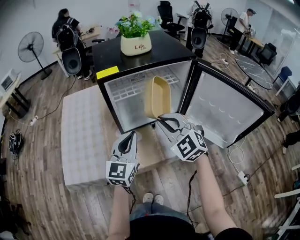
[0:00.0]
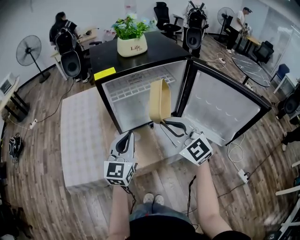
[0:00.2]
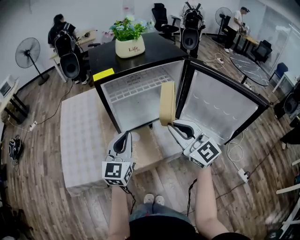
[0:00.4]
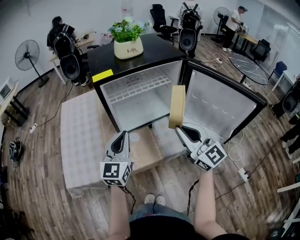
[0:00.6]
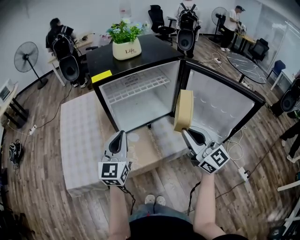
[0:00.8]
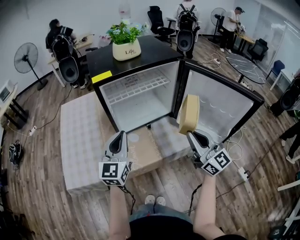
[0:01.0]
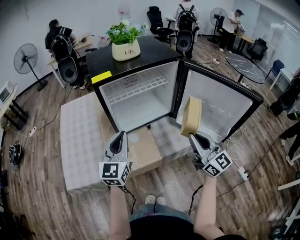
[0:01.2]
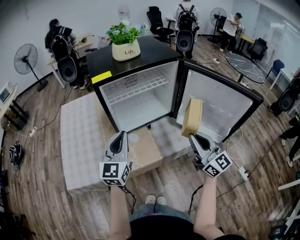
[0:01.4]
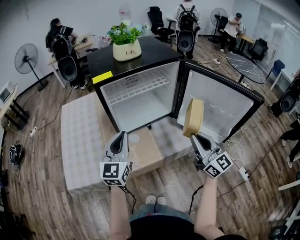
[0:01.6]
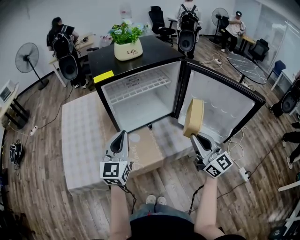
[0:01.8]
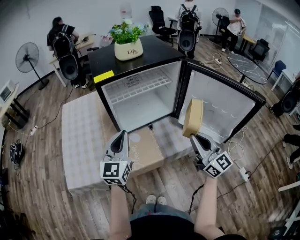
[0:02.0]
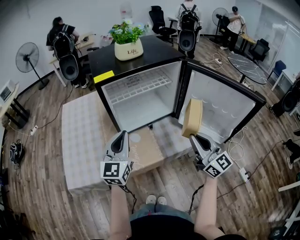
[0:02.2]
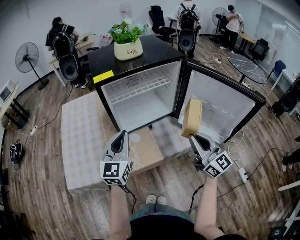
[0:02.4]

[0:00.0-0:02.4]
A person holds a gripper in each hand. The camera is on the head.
0:00.0 to 0:01.2: The right gripper heads to the right and backward, covering roughly 20 cm, and tips its fingers upward by some 30 degrees.
0:01.2 to 0:02.4: Both grippers stay put.

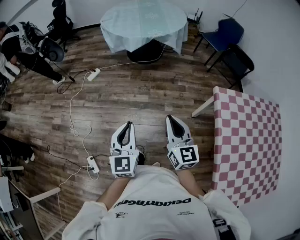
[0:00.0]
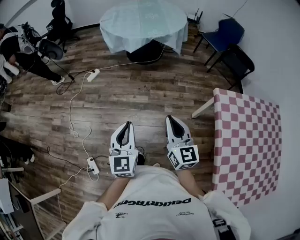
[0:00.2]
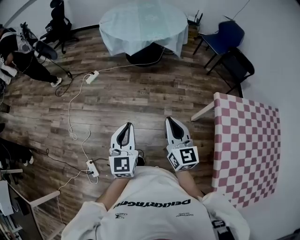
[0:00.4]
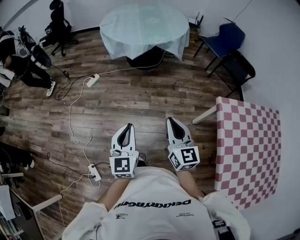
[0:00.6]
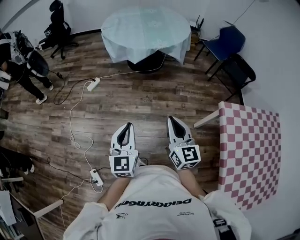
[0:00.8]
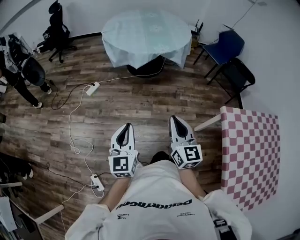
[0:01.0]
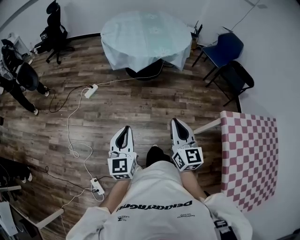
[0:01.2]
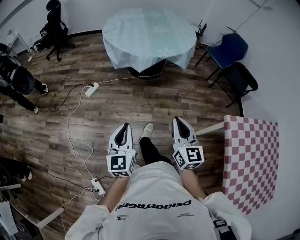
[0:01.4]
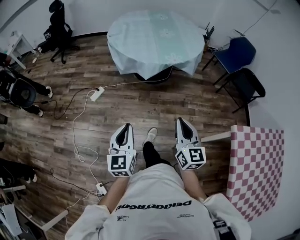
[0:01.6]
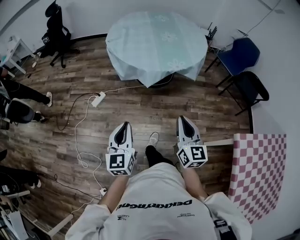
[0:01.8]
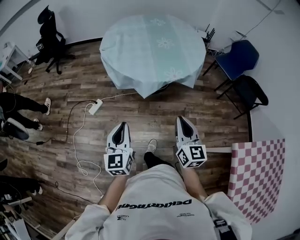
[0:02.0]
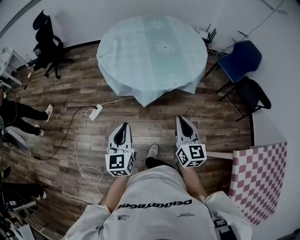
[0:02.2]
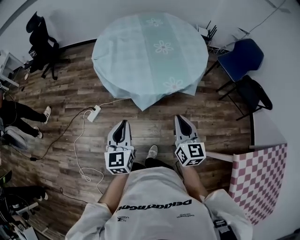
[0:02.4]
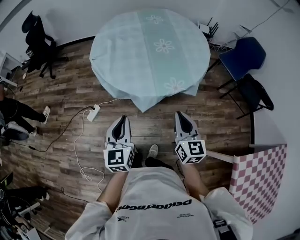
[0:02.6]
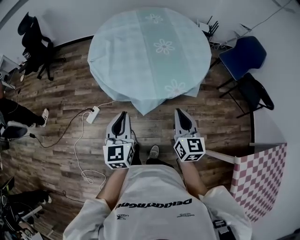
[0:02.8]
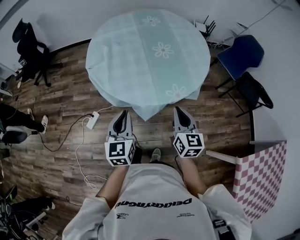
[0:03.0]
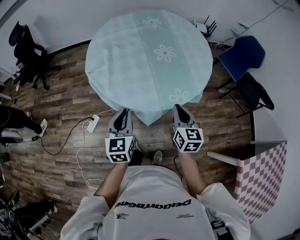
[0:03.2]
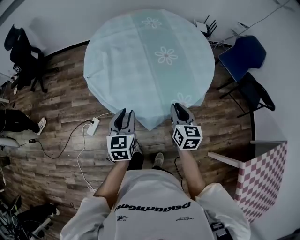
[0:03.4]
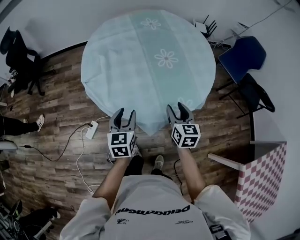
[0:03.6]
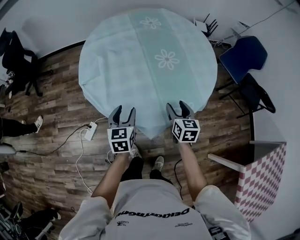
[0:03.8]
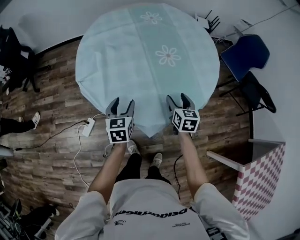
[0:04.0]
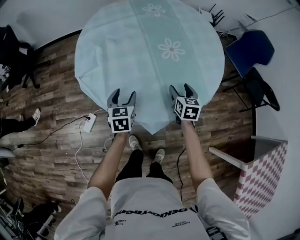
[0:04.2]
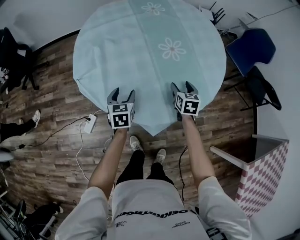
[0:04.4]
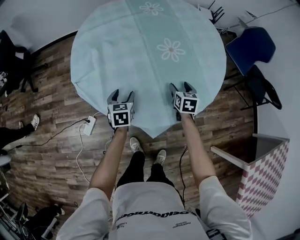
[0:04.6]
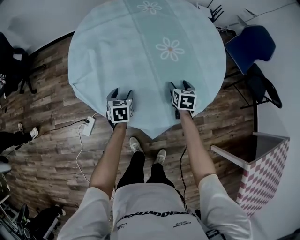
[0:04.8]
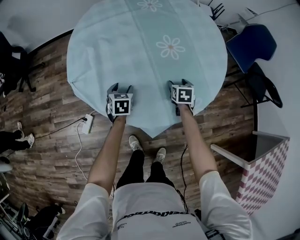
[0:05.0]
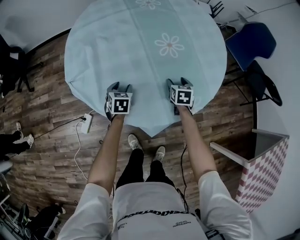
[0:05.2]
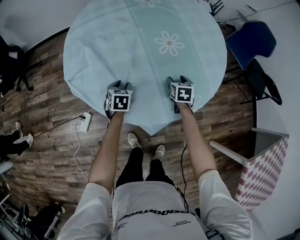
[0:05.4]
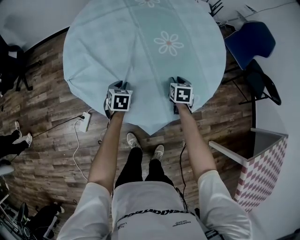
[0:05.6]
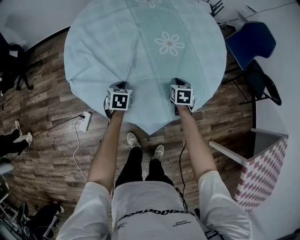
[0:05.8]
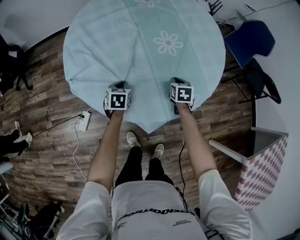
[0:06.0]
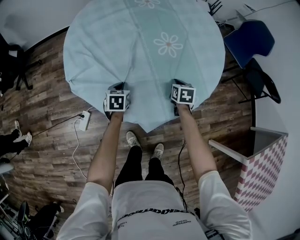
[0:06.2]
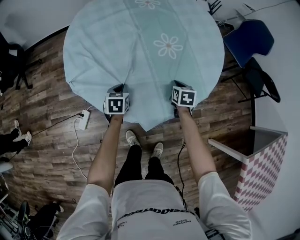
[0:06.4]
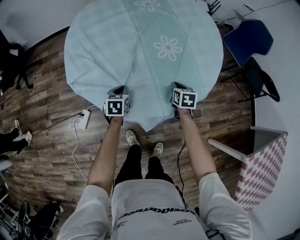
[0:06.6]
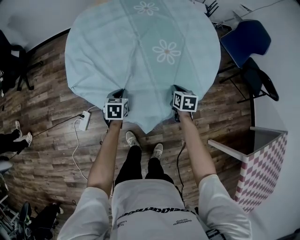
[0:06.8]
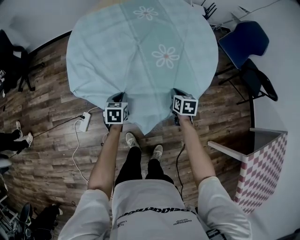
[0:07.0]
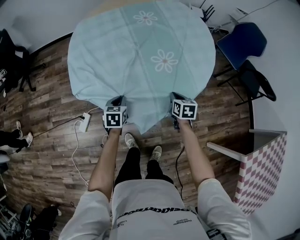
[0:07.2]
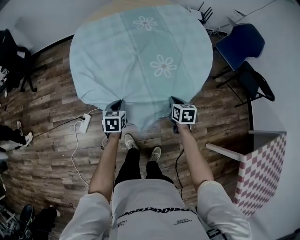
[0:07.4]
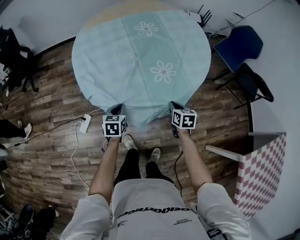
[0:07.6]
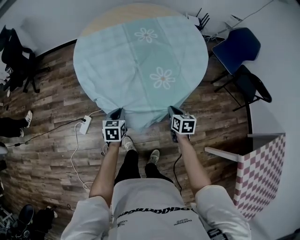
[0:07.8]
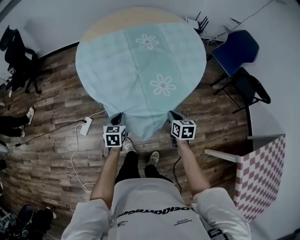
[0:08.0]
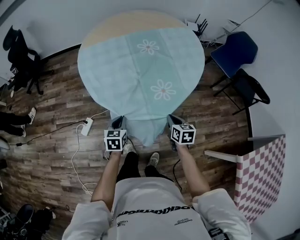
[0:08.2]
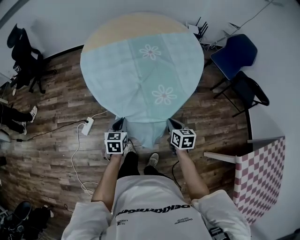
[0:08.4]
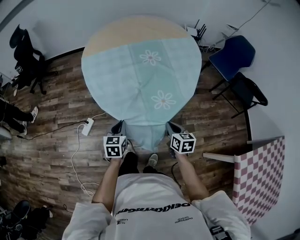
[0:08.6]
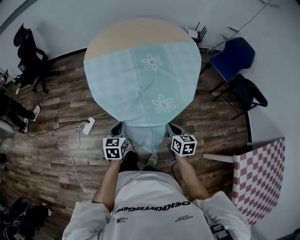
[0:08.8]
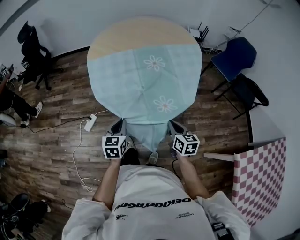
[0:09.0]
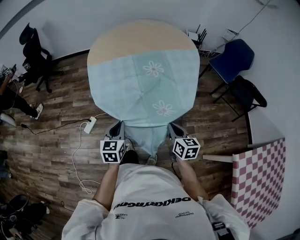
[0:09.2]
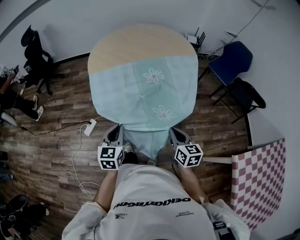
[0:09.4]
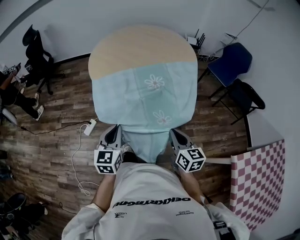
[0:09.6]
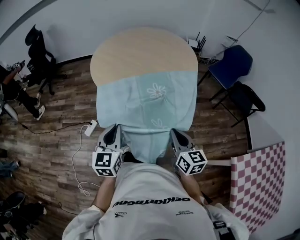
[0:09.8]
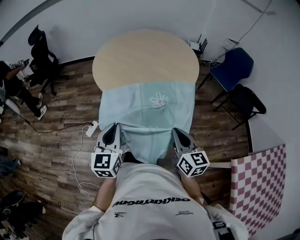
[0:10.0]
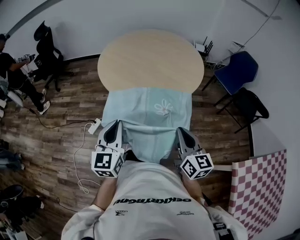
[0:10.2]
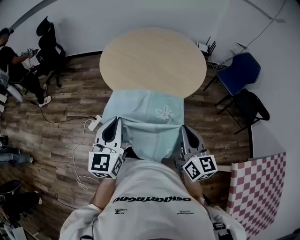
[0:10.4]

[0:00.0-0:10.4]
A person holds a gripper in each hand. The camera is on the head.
0:00.0 to 0:01.4: Both grippers move forward and to the left, roughly 25 cm.
0:01.4 to 0:03.0: Both grippers are carried forward, about 50 cm.
0:03.0 to 0:04.4: Both grippers travel together forward and downward, approximately 35 cm. The left gripper changes its angle by roughly 20 degrees, and opens up; the right gripper turns by roughly 30 degrees, and opens its fingers.
0:04.4 to 0:06.0: Both grippers travel together downward, roughly 10 cm. The right gripper closes its fingers; the left gripper closes its fingers.
0:06.0 to 0:07.4: The right gripper travels backward by roughly 15 cm; the left gripper travels backward and upward by some 15 cm.
0:07.4 to 0:09.0: Both grippers move backward and upward, about 25 cm.
0:09.0 to 0:10.4: The left gripper moves upward and backward, about 25 cm, and turns by some 30 degrees, while the right gripper heads upward, covering about 20 cm, and rotates approximately 30 degrees.

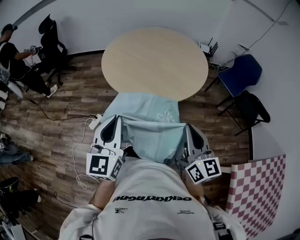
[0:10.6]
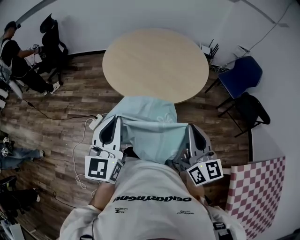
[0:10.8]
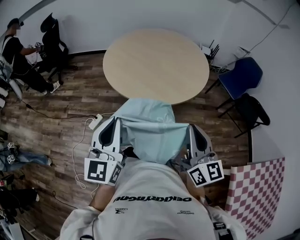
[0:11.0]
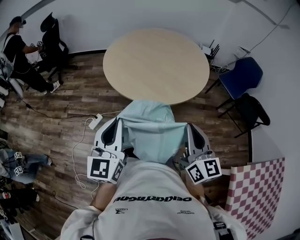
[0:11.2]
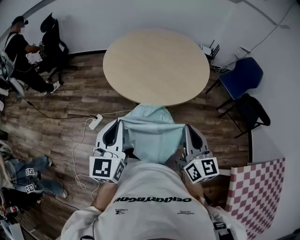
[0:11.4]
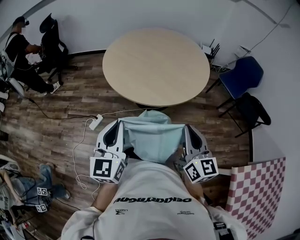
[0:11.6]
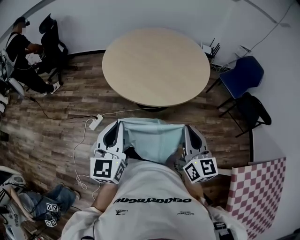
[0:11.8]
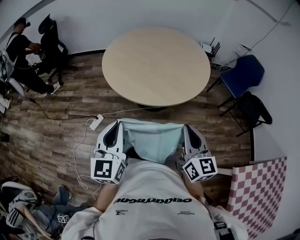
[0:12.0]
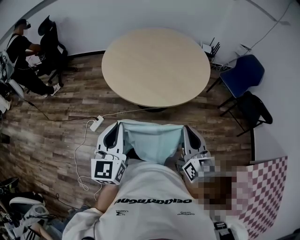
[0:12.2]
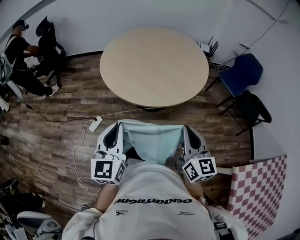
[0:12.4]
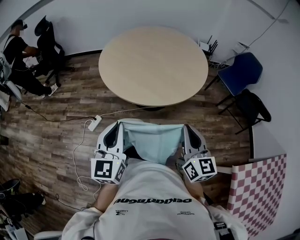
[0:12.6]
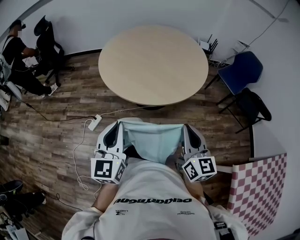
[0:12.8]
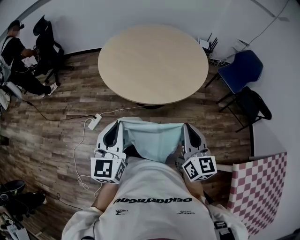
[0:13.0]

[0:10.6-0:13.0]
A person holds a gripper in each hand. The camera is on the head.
0:10.6 to 0:13.0: The grippers make only small movements.

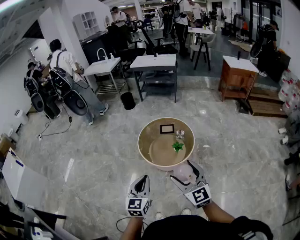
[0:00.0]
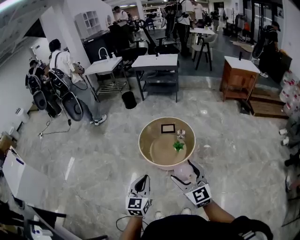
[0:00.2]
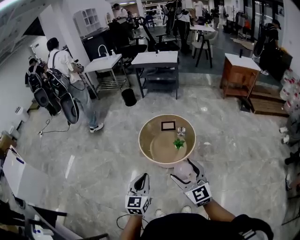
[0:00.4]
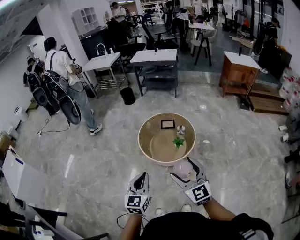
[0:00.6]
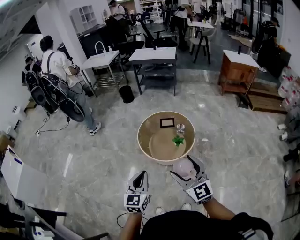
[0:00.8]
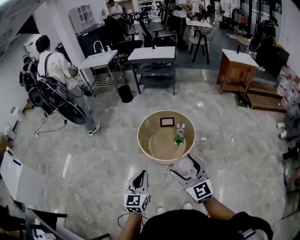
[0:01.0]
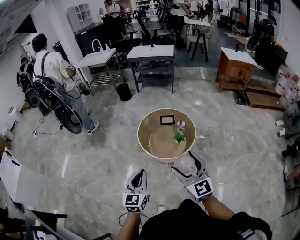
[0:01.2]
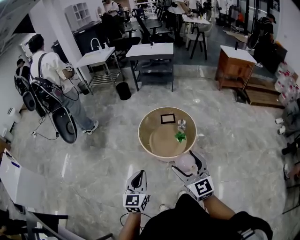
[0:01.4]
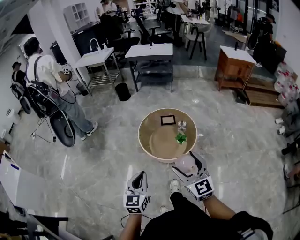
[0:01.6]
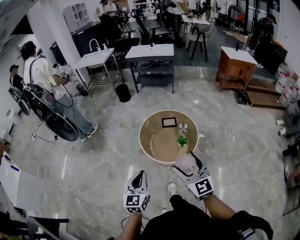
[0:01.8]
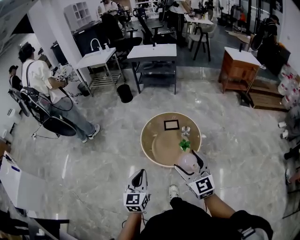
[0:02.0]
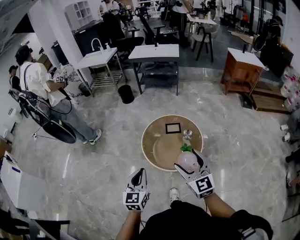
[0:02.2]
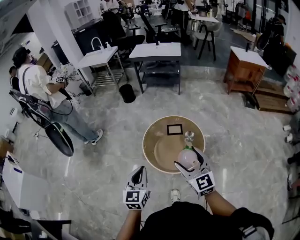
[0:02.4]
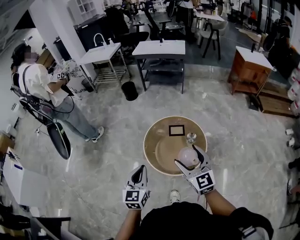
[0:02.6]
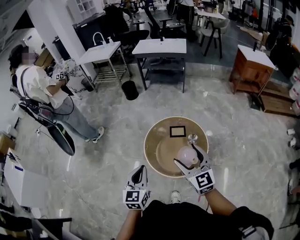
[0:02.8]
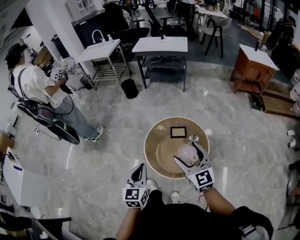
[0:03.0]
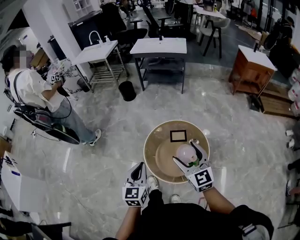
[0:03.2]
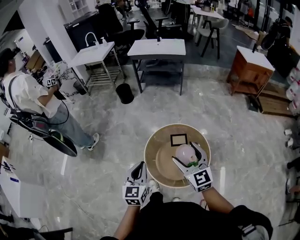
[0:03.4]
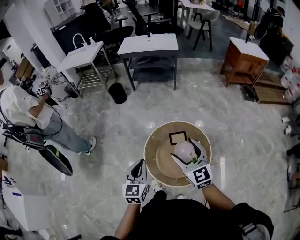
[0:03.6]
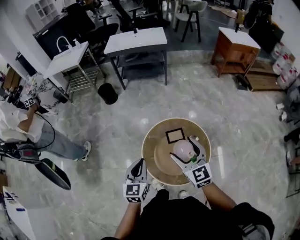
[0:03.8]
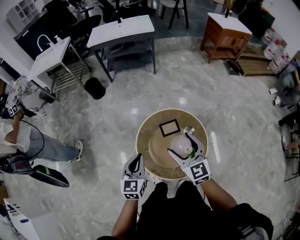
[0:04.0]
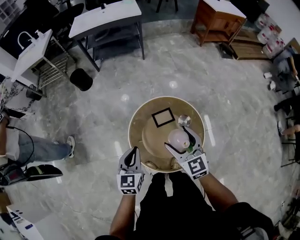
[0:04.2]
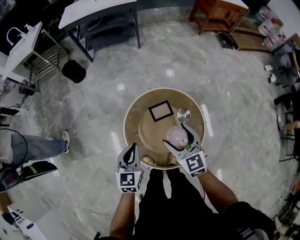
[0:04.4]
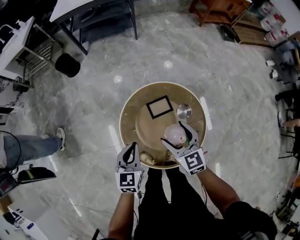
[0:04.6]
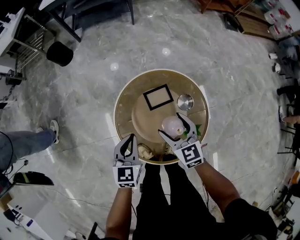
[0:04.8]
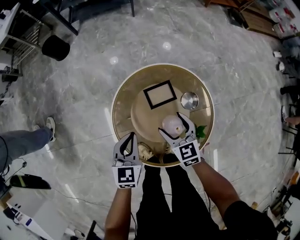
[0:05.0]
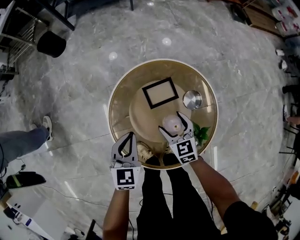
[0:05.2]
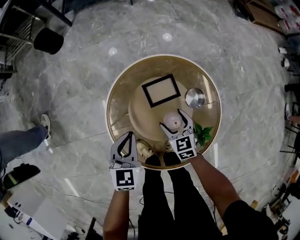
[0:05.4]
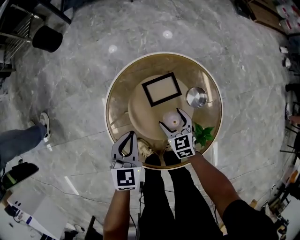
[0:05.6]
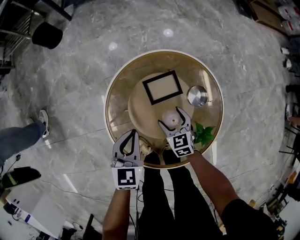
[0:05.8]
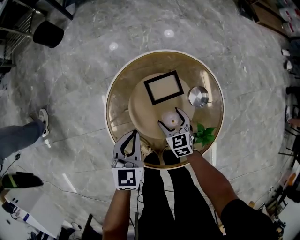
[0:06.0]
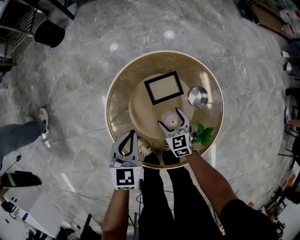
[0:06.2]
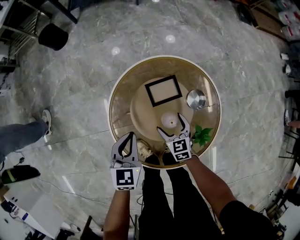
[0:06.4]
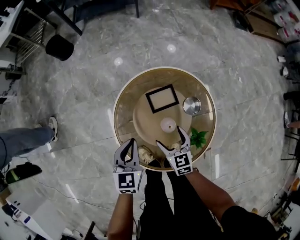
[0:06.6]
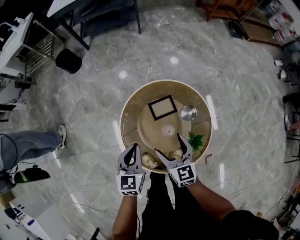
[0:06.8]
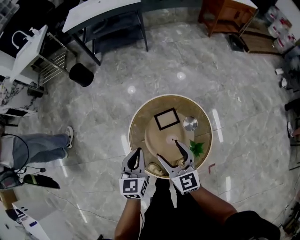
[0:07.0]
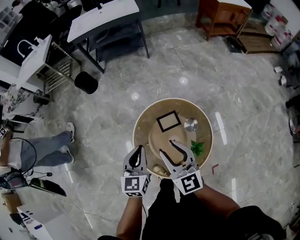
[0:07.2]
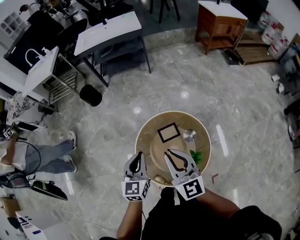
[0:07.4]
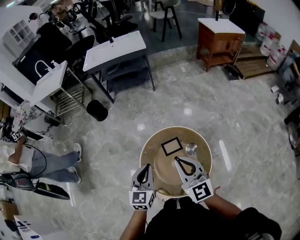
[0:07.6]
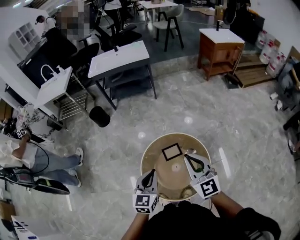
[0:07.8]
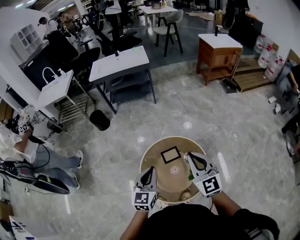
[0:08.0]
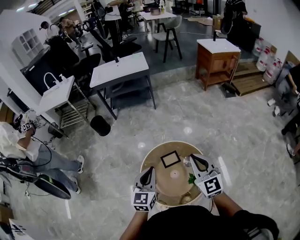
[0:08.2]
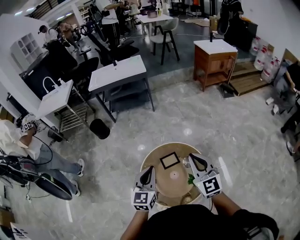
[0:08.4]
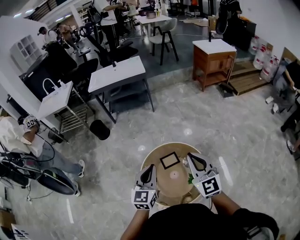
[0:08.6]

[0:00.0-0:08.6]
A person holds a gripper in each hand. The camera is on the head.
0:00.0 to 0:01.4: Both grippers move to the left, approximately 5 cm.
0:01.4 to 0:02.8: Both grippers move forward, roughly 25 cm.
0:02.8 to 0:04.4: Both grippers travel together forward and downward, some 35 cm. The right gripper rotates roughly 30 degrees, while the left gripper changes its angle by about 30 degrees.
0:04.4 to 0:05.8: The right gripper shifts some 40 cm downward, and turns by approximately 20 degrees. Meanwhile the left gripper travels downward by roughly 20 cm.
0:05.8 to 0:07.2: The left gripper is displaced upward by about 25 cm. Meanwhile the right gripper goes about 50 cm upward, points its fingers some 40 degrees further upward, and closes.
0:07.2 to 0:08.6: The right gripper is displaced upward and to the right by approximately 20 cm, and closes up; the left gripper heads upward, covering about 15 cm.
